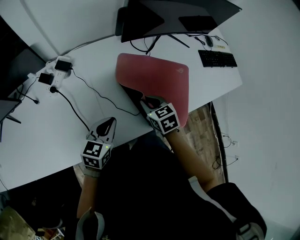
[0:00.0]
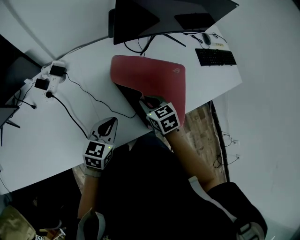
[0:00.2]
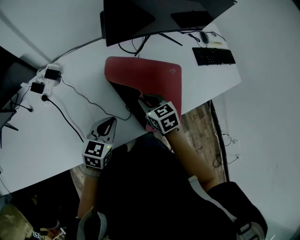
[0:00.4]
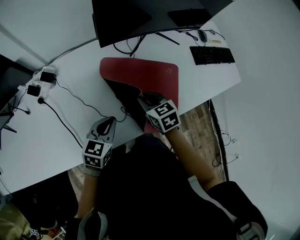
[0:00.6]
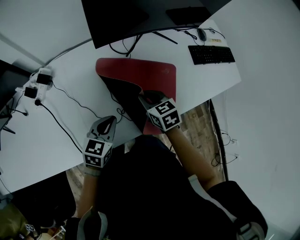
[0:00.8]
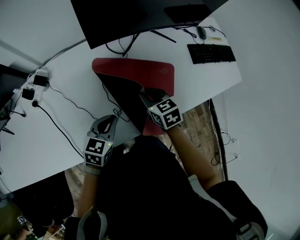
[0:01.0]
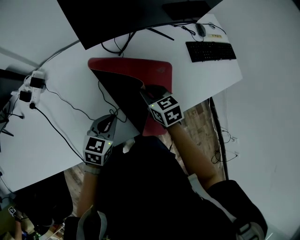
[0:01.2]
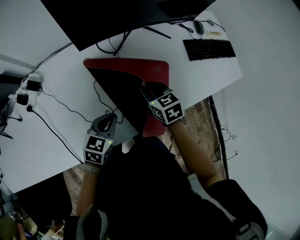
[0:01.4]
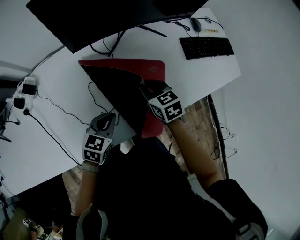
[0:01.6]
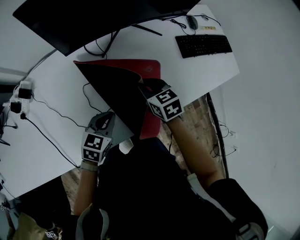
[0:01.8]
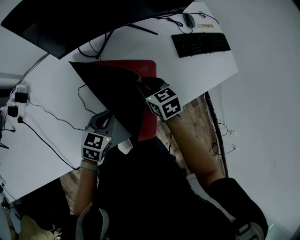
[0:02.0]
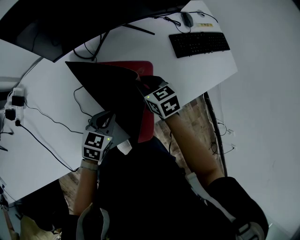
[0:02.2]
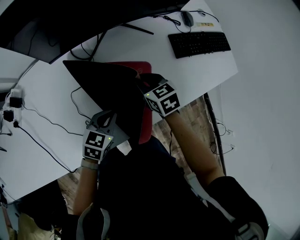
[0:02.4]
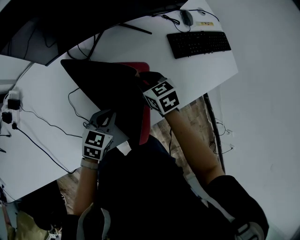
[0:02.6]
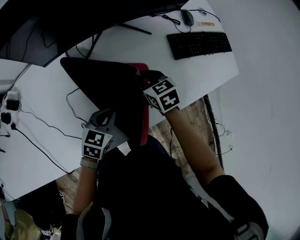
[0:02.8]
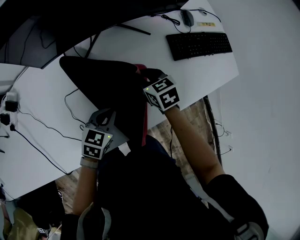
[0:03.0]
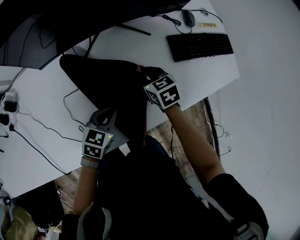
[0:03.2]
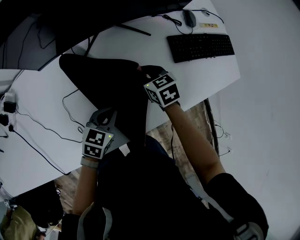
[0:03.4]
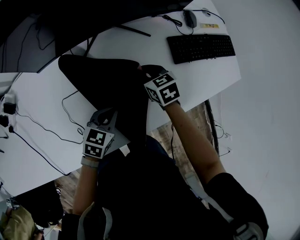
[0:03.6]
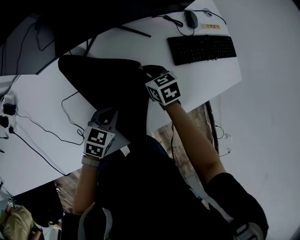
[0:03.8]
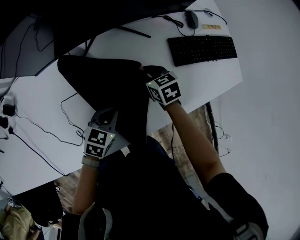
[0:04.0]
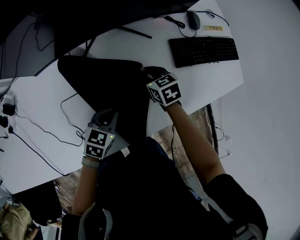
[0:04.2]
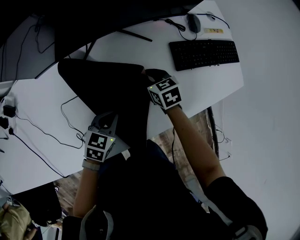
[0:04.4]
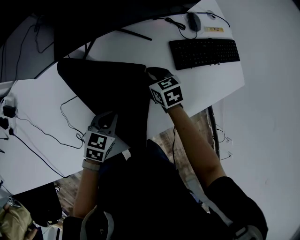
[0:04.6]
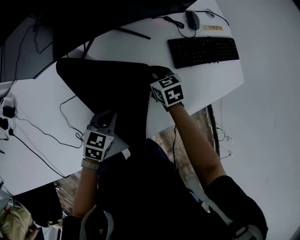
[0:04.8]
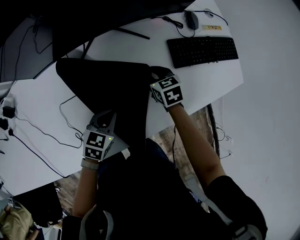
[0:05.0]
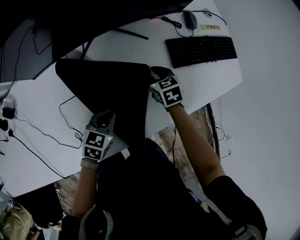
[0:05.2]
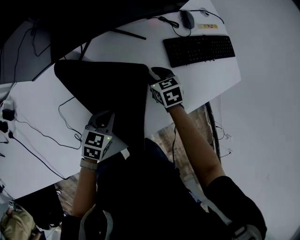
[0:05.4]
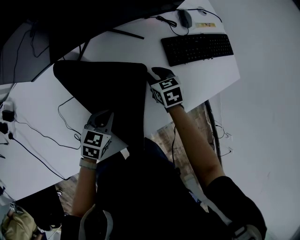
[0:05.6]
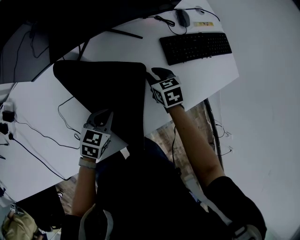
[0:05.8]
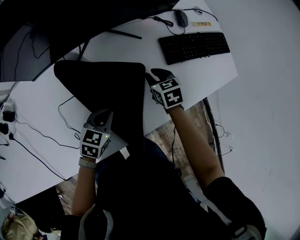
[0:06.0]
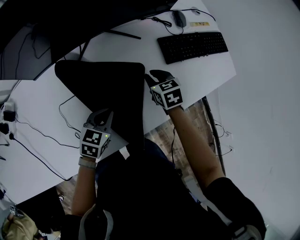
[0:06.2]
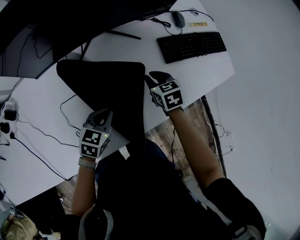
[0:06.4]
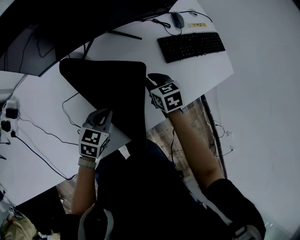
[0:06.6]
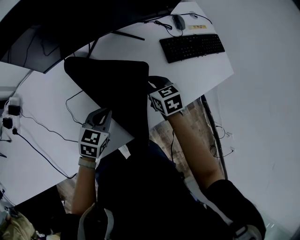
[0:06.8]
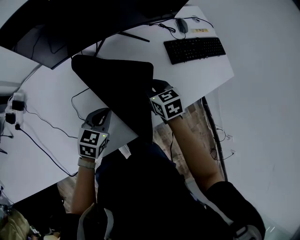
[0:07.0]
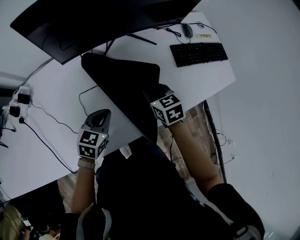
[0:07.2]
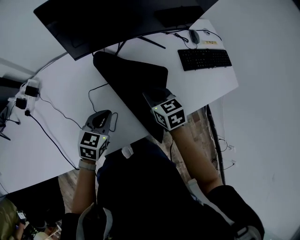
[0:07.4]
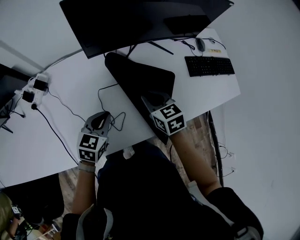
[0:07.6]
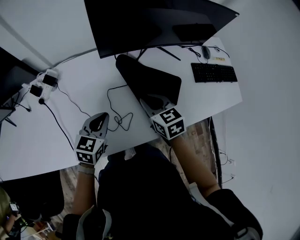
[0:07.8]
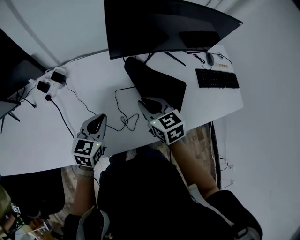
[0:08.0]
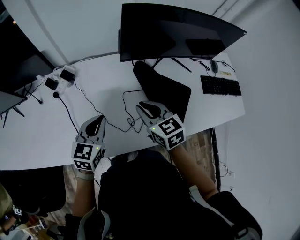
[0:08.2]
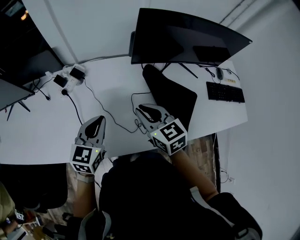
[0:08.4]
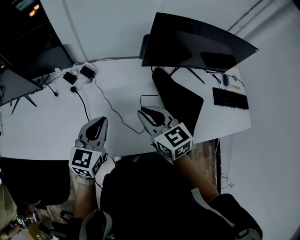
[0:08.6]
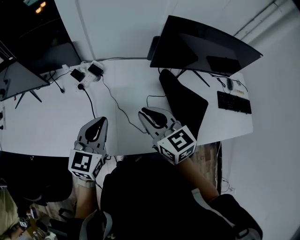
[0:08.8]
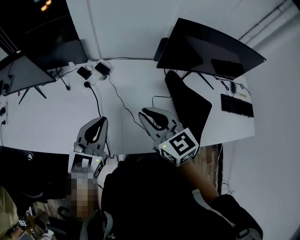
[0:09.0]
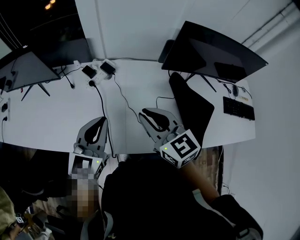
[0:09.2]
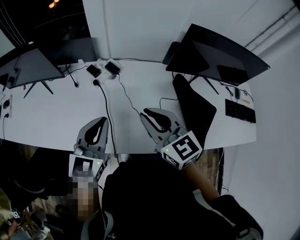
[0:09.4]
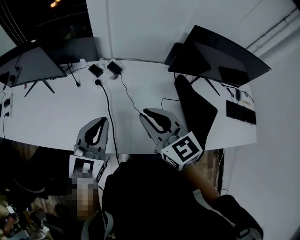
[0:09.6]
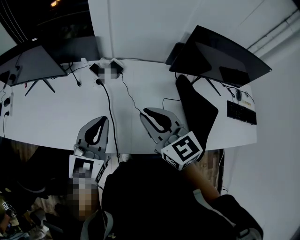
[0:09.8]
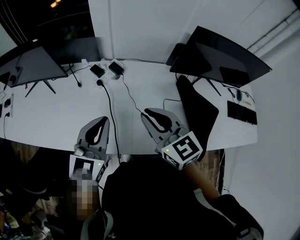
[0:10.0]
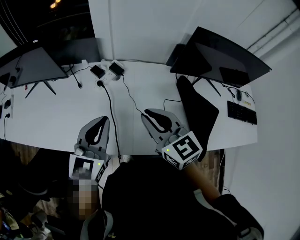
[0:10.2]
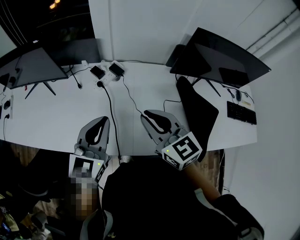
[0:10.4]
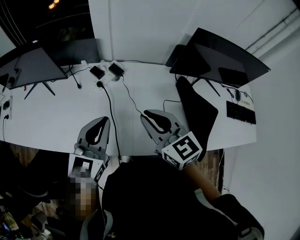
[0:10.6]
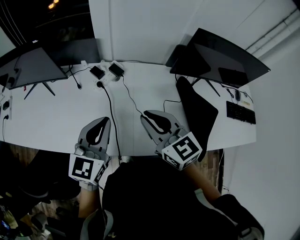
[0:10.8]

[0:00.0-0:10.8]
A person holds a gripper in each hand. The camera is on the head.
0:00.0 to 0:01.6: The grippers both shift to the right and forward by approximately 20 cm.
0:01.6 to 0:03.0: The right gripper heads forward, to the right and downward, covering some 15 cm. Meanwhile the left gripper heads to the right and forward, covering roughly 15 cm.
0:03.0 to 0:04.6: The left gripper ends up roughly 5 cm from where it was, while the right gripper moves forward and downward, about 10 cm.
0:04.6 to 0:06.2: The right gripper changes place by about 5 cm.
0:06.2 to 0:07.8: Both grippers travel together to the left, upward and backward, approximately 30 cm. The right gripper changes its angle by some 20 degrees; the left gripper swivels roughly 20 degrees.
0:07.8 to 0:09.2: The two grippers go some 30 cm to the left and upward. The left gripper turns by approximately 30 degrees, while the right gripper rotates roughly 30 degrees.
0:09.2 to 0:10.8: The grippers stay close to where they were, moving slightly.

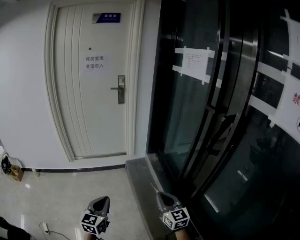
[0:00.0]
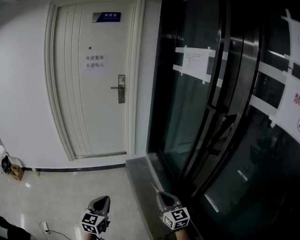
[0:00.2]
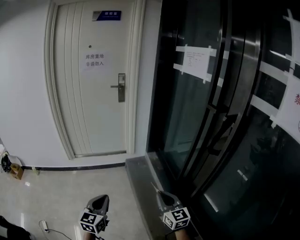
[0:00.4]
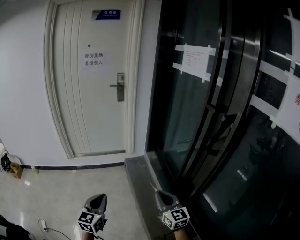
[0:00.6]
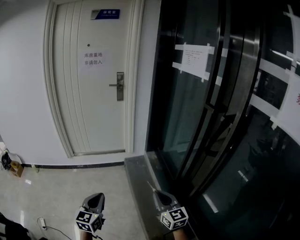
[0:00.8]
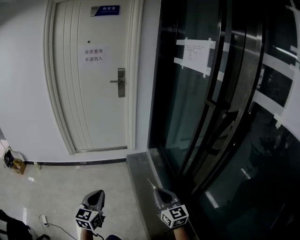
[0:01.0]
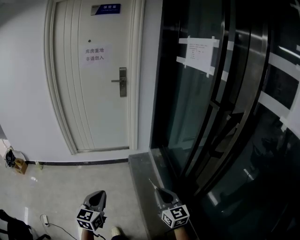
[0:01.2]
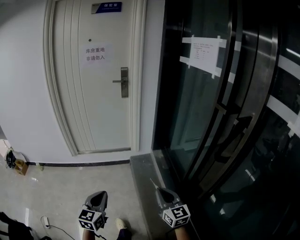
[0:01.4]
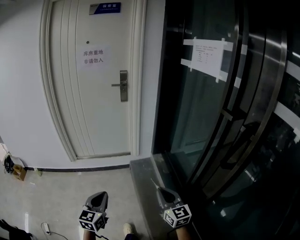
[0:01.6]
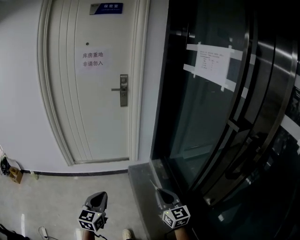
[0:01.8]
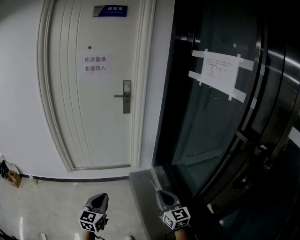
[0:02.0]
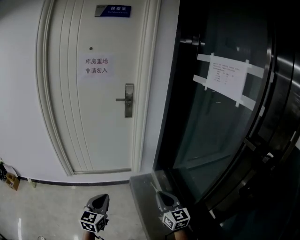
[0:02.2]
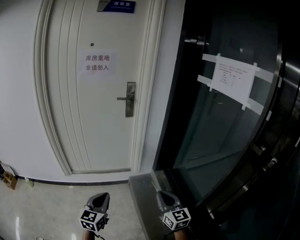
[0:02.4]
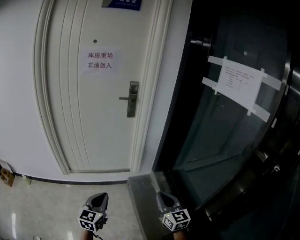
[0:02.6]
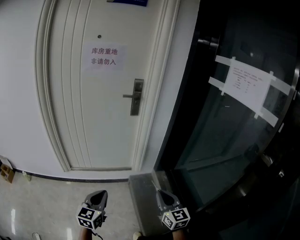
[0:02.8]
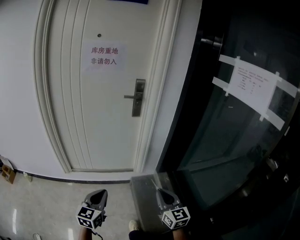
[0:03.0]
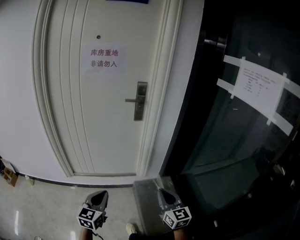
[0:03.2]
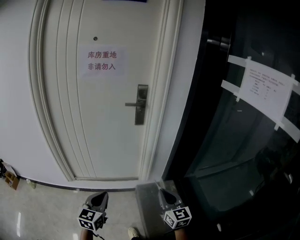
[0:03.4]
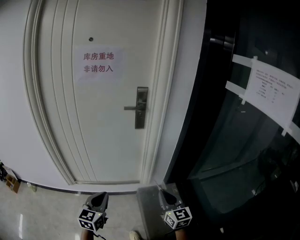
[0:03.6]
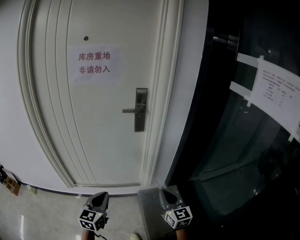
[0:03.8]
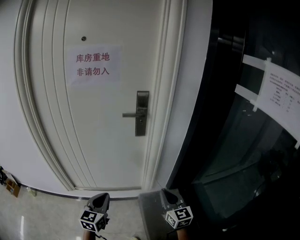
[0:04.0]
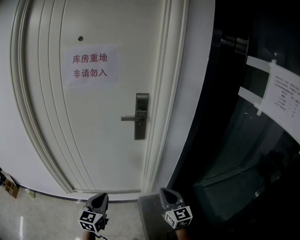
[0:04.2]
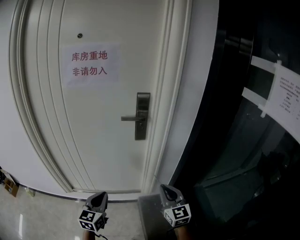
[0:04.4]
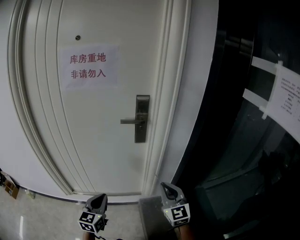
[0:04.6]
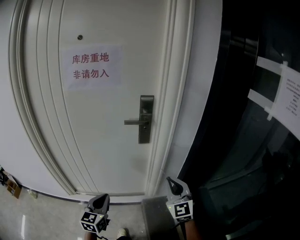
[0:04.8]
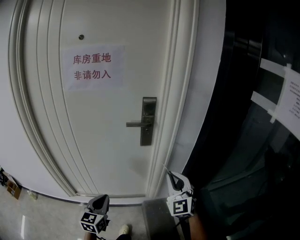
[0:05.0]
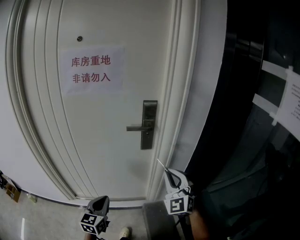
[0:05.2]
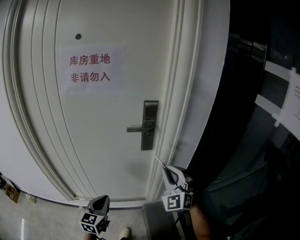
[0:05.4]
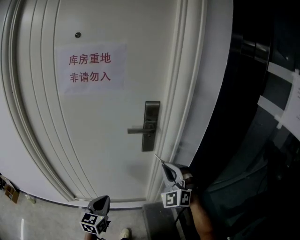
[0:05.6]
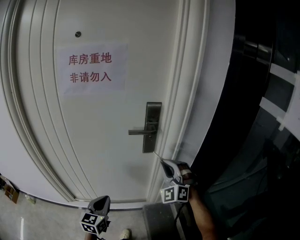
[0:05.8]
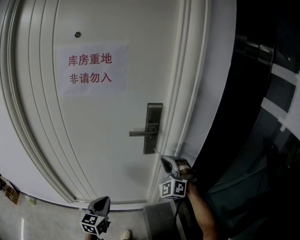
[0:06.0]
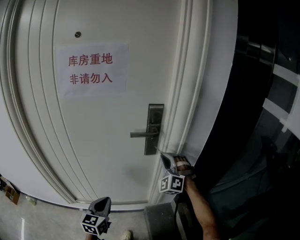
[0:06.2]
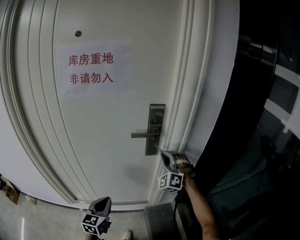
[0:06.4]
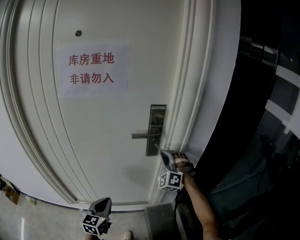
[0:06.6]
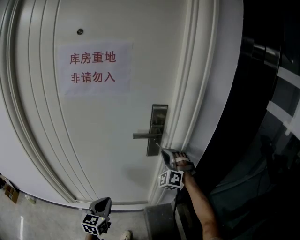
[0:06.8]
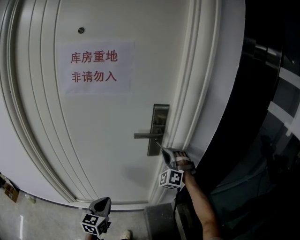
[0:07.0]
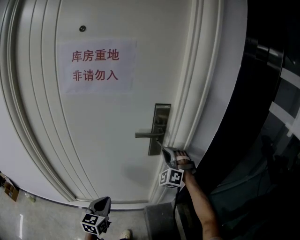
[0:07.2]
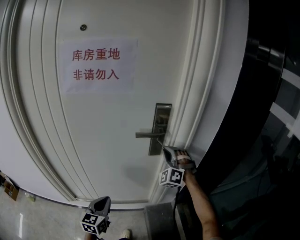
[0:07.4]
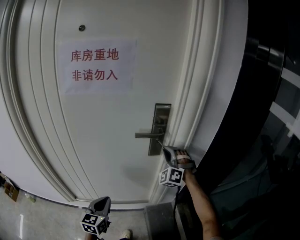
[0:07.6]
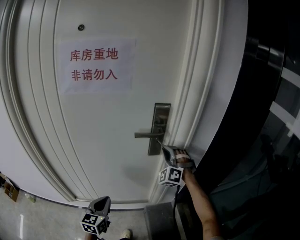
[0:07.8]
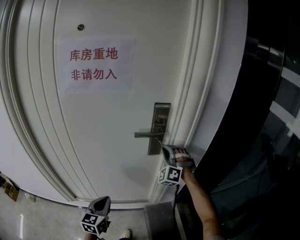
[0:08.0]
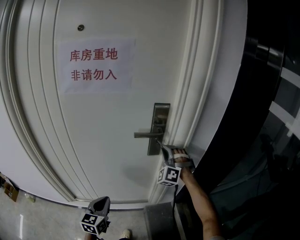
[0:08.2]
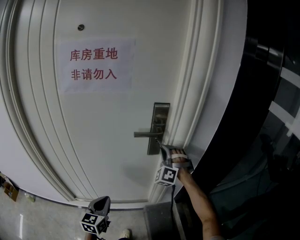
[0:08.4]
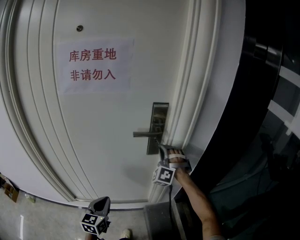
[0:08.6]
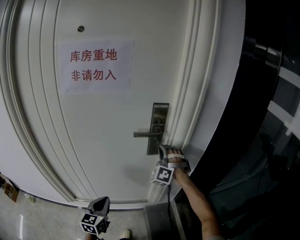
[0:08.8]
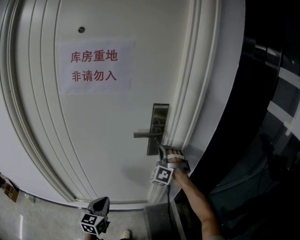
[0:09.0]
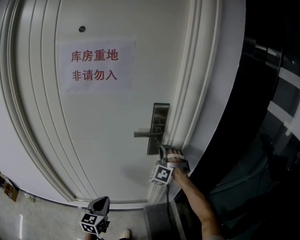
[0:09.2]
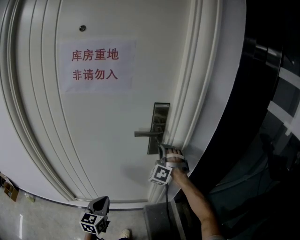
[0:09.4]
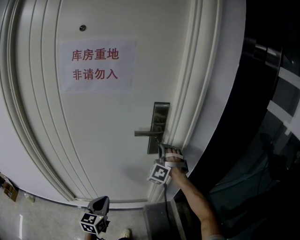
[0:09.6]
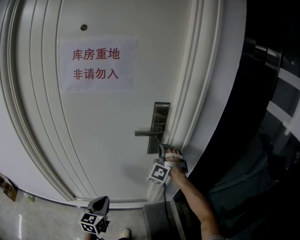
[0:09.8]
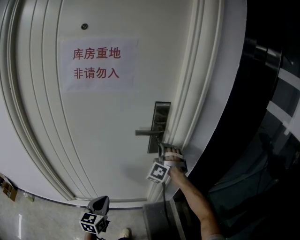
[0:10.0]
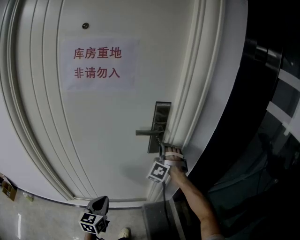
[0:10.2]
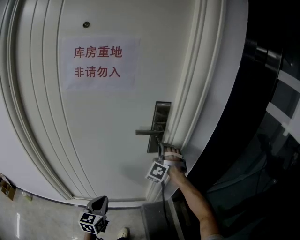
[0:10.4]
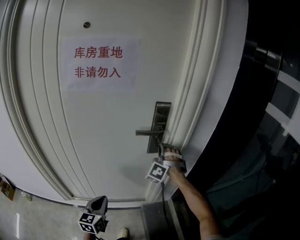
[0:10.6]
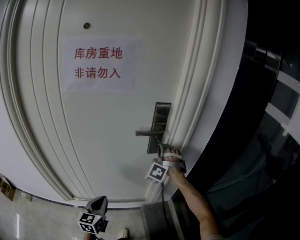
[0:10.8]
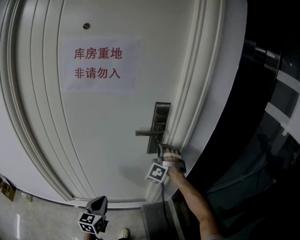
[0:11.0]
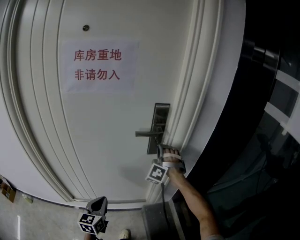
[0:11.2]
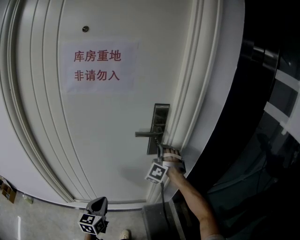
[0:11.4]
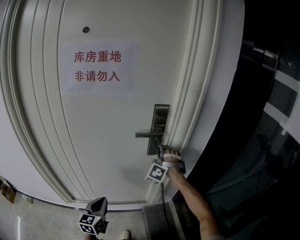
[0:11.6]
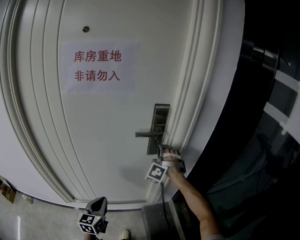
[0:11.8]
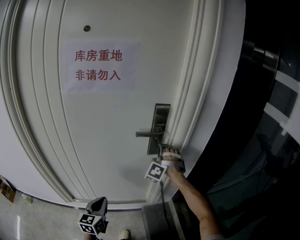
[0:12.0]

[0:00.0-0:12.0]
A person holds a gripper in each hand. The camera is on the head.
0:00.0 to 0:01.6: Both grippers travel together forward, approximately 10 cm.
0:01.6 to 0:03.0: The left gripper heads forward, covering roughly 30 cm. The right gripper shifts about 30 cm forward and to the left.
0:03.0 to 0:04.4: Both grippers travel together forward, approximately 30 cm.
0:04.4 to 0:06.0: The left gripper is displaced forward by roughly 10 cm; the right gripper is displaced forward by some 20 cm, and rotates around the line of its fingers by approximately 60 degrees, counterclockwise from behind.
0:06.0 to 0:07.6: The right gripper goes some 10 cm forward.
0:07.6 to 0:09.0: There are only small adjustments of the grippers.
0:09.0 to 0:10.4: The grippers make only small movements.
0:10.4 to 0:12.0: Neither gripper changes place.

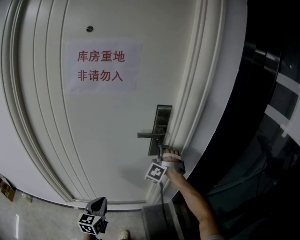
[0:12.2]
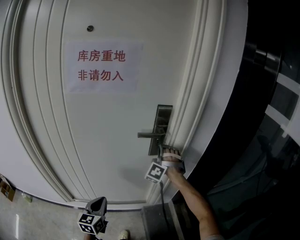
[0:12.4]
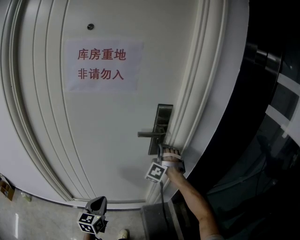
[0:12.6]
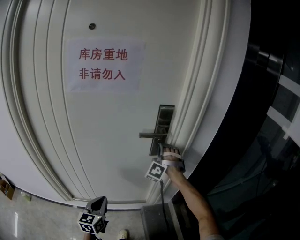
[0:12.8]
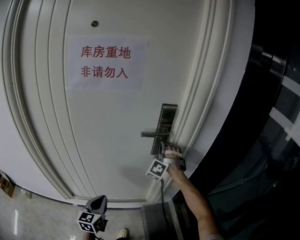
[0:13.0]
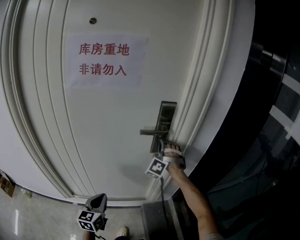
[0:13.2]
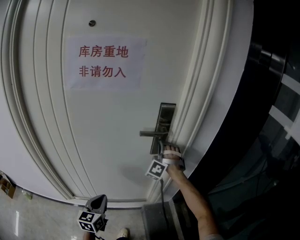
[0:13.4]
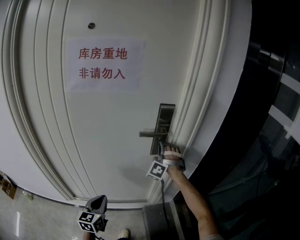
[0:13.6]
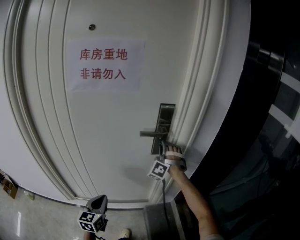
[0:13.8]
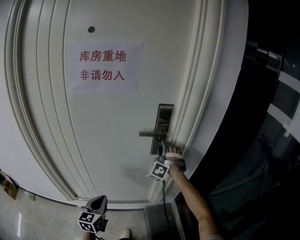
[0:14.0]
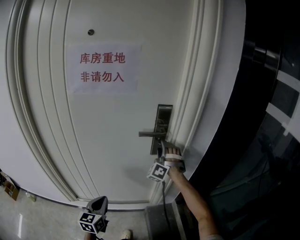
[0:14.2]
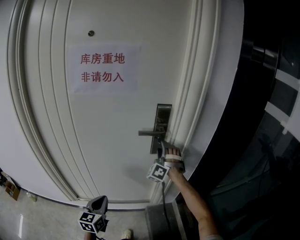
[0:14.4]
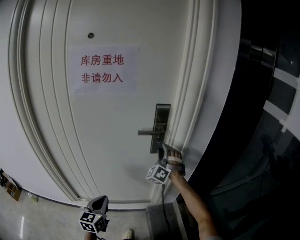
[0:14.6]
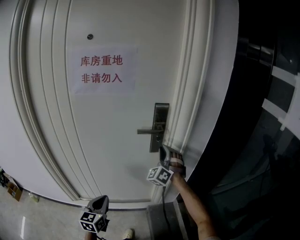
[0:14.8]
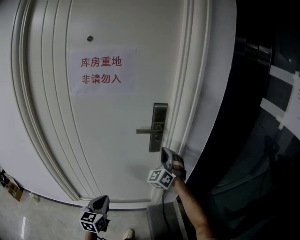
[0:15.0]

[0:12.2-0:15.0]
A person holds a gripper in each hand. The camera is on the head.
0:12.2 to 0:13.6: The grippers make only small movements.
0:13.6 to 0:15.0: The left gripper moves roughly 5 cm, while the right gripper is displaced backward by roughly 10 cm, turns by approximately 30 degrees, and opens, then closes again.
